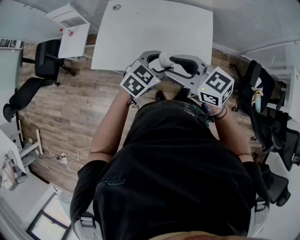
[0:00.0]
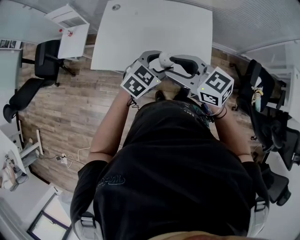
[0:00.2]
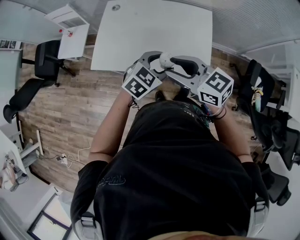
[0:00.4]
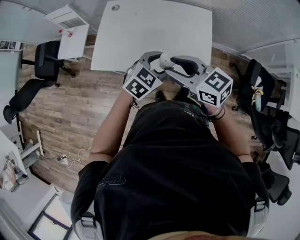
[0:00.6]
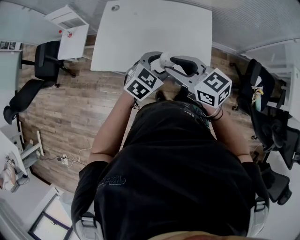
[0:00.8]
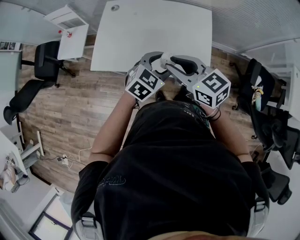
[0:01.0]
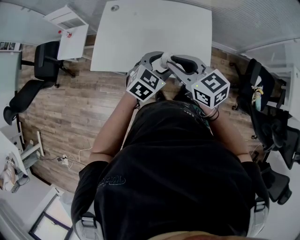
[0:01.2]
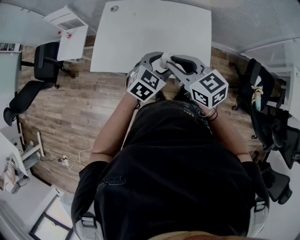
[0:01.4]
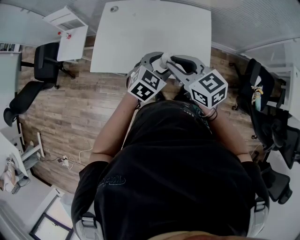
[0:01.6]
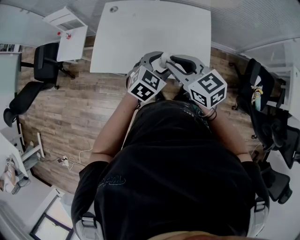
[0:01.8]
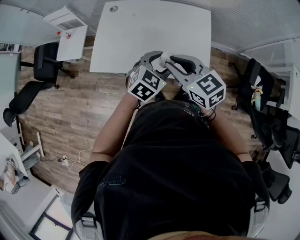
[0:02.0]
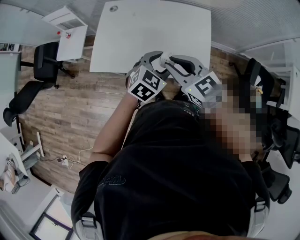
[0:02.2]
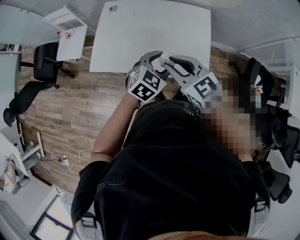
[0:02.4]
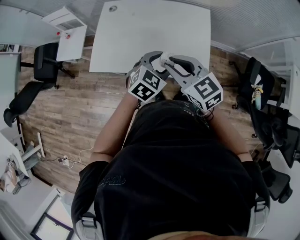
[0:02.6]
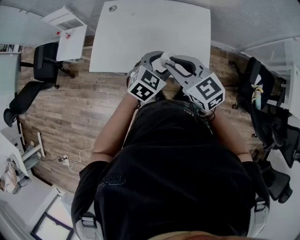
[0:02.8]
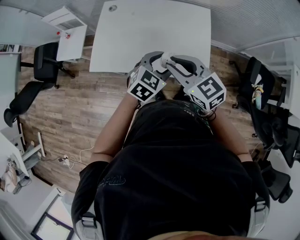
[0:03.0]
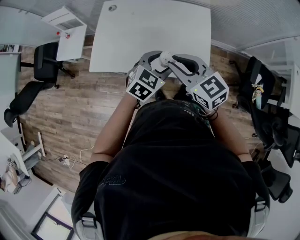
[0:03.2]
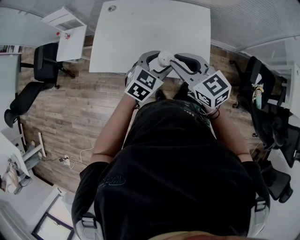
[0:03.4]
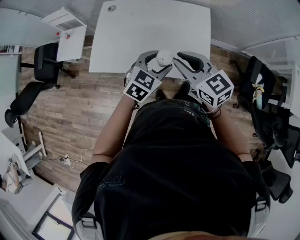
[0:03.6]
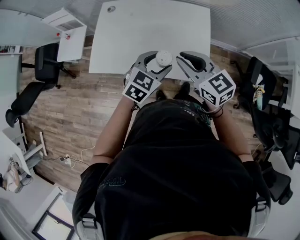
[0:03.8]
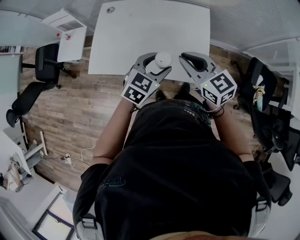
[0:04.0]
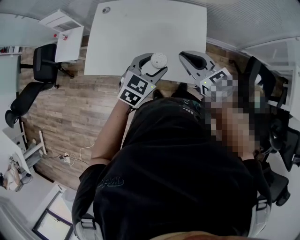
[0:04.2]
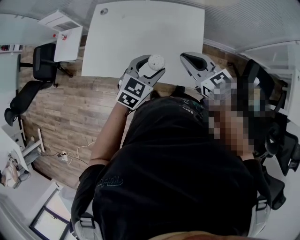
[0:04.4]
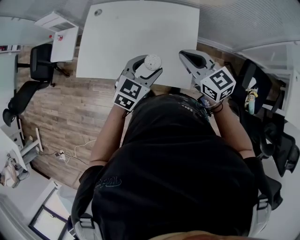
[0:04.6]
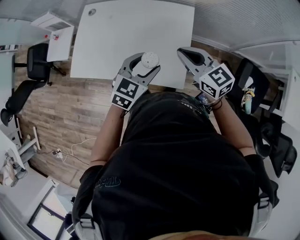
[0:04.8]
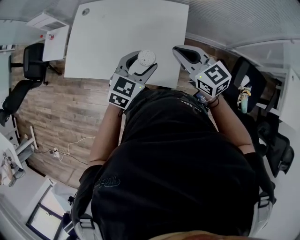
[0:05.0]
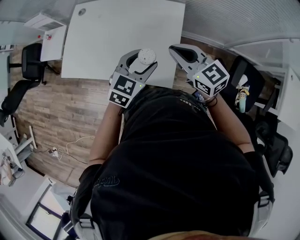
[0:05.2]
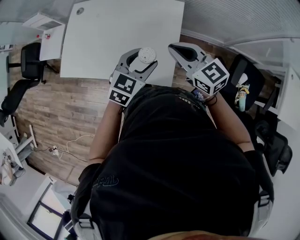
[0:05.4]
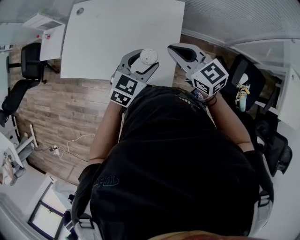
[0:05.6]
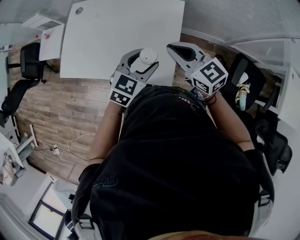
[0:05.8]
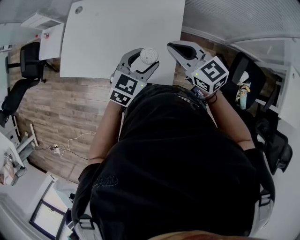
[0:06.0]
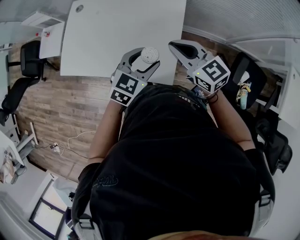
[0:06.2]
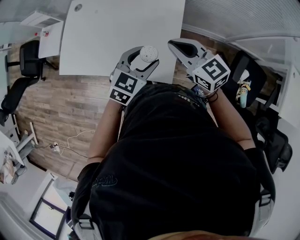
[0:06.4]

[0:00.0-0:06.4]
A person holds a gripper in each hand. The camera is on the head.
0:00.0 to 0:01.6: The right gripper closes its fingers.
0:01.6 to 0:03.2: The grippers move only a little.
0:03.2 to 0:04.8: The right gripper heads to the right and forward, covering approximately 20 cm. The left gripper goes roughly 10 cm to the right.
0:04.8 to 0:06.4: The left gripper shifts about 5 cm to the right.

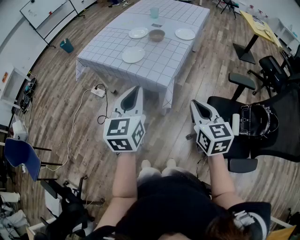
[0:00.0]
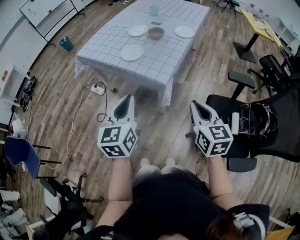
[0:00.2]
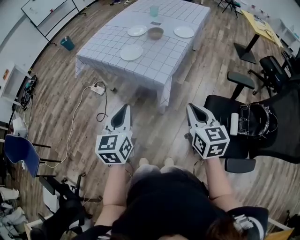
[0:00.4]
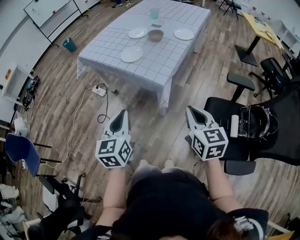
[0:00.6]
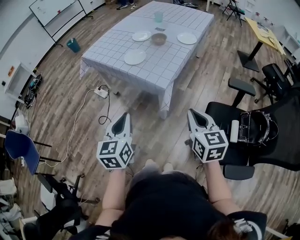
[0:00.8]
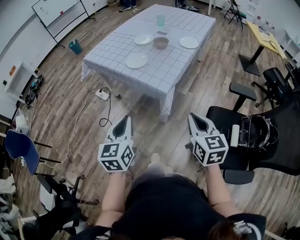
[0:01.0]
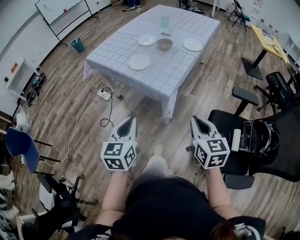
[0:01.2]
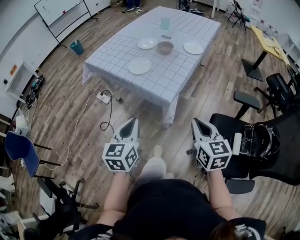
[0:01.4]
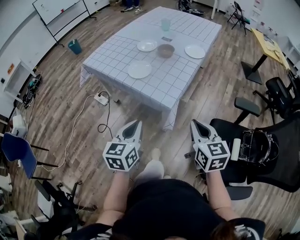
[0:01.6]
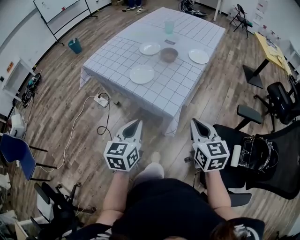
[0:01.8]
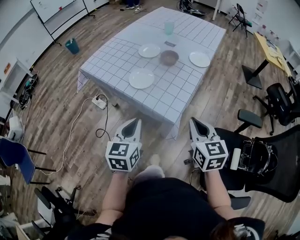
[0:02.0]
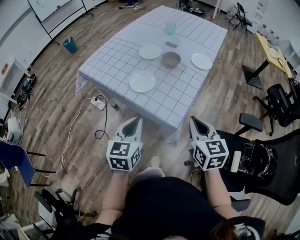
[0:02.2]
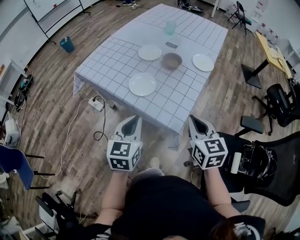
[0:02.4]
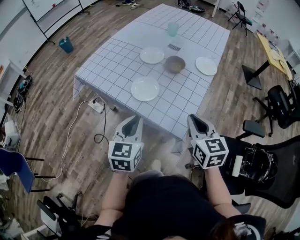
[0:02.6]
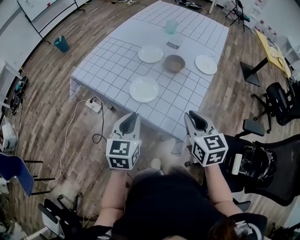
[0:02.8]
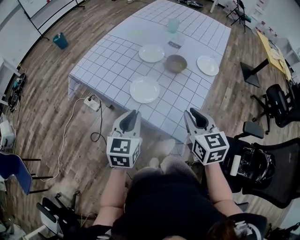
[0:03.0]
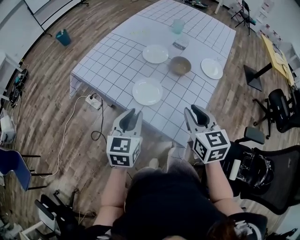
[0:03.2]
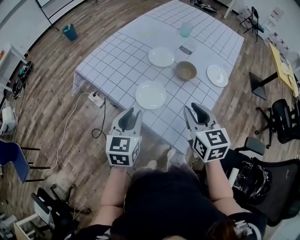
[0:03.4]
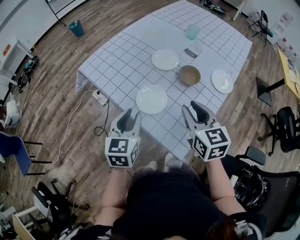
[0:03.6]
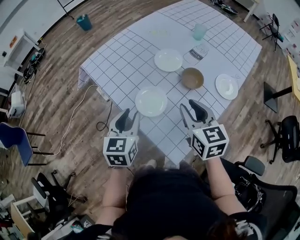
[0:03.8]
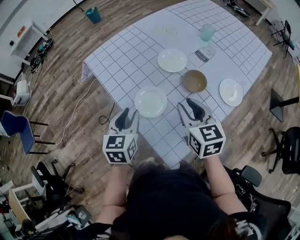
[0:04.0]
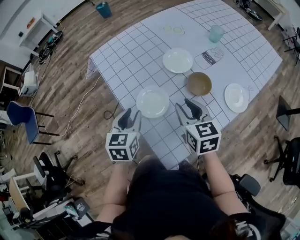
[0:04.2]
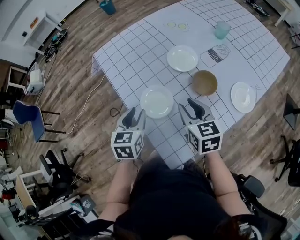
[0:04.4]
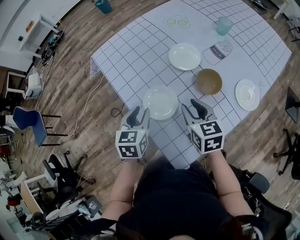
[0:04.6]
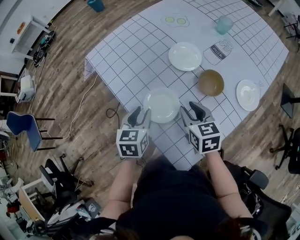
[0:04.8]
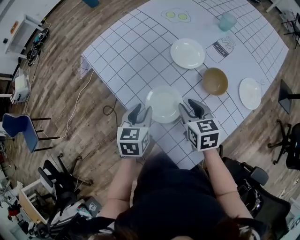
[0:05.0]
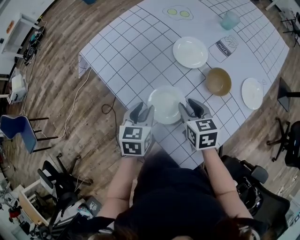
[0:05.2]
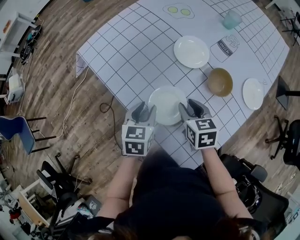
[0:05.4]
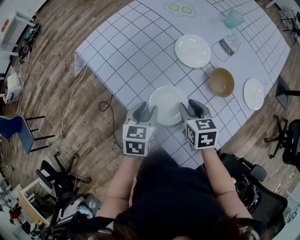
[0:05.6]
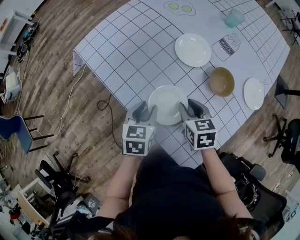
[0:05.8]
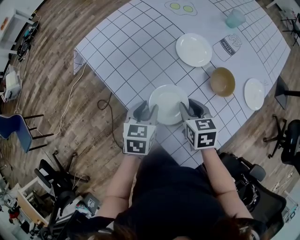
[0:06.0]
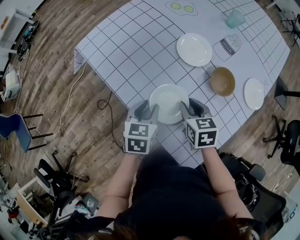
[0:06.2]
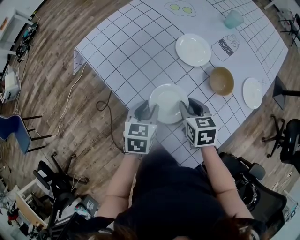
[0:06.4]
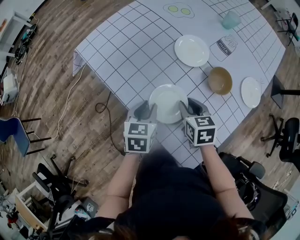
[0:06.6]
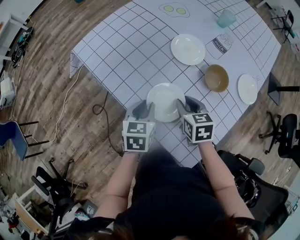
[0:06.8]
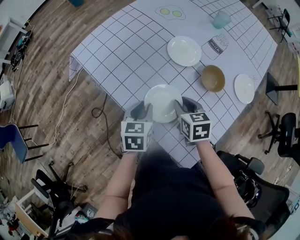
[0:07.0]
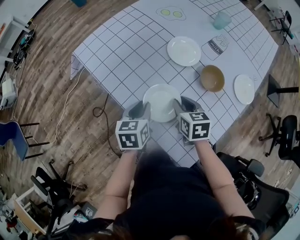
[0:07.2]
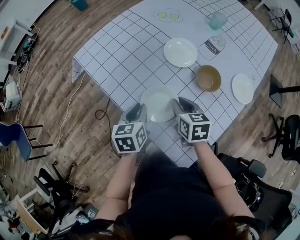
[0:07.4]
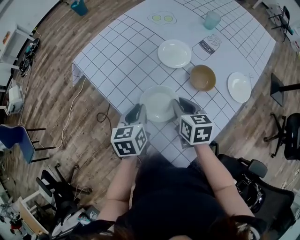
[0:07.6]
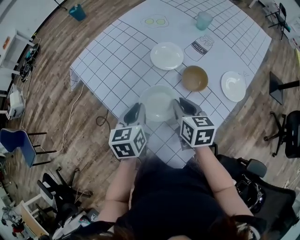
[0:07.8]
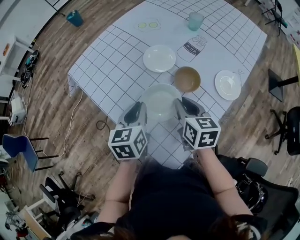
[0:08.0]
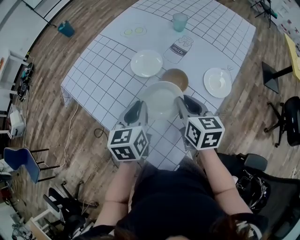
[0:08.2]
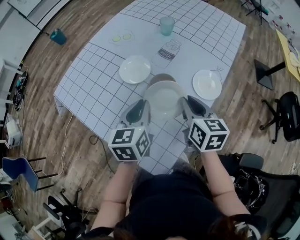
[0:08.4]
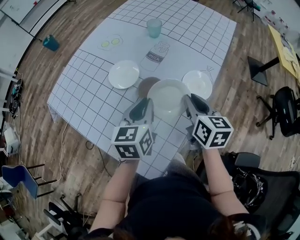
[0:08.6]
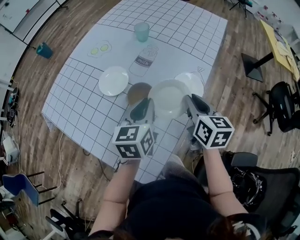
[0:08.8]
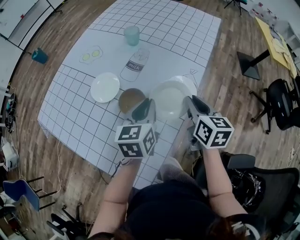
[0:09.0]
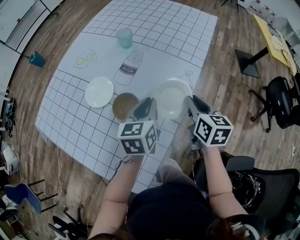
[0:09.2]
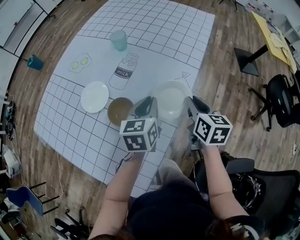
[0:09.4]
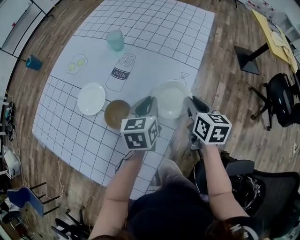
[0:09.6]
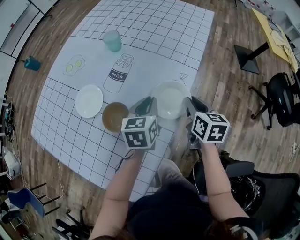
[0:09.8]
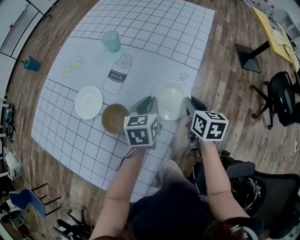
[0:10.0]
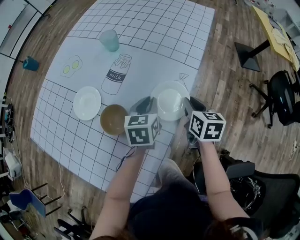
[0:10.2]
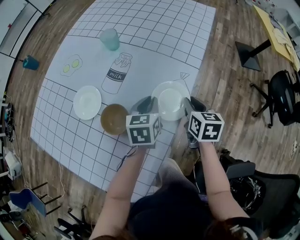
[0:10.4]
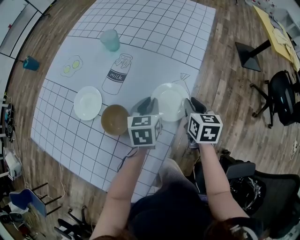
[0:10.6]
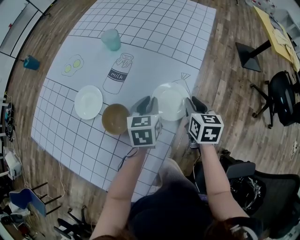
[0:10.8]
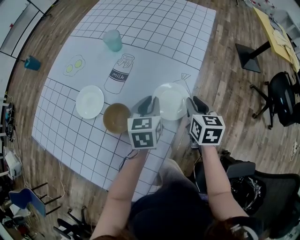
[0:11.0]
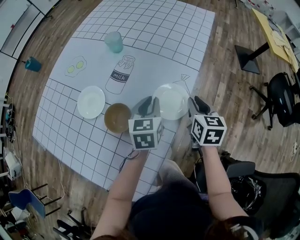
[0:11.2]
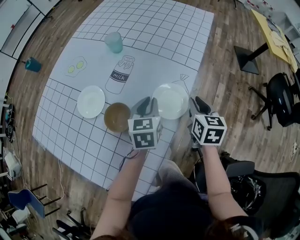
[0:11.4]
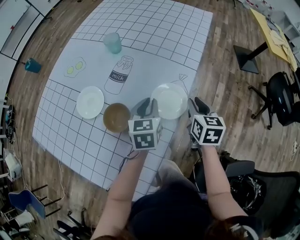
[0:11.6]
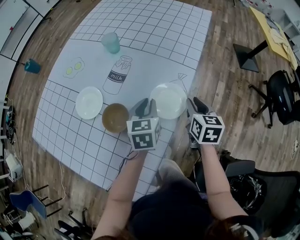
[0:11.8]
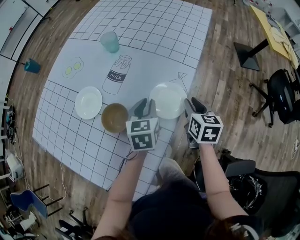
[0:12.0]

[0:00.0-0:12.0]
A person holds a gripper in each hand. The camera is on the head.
0:00.0 to 0:01.6: The left gripper is displaced downward by roughly 10 cm. Meanwhile the right gripper is displaced forward by some 5 cm.
0:01.6 to 0:03.0: The left gripper shifts some 25 cm forward; the right gripper shifts some 25 cm forward and to the left.
0:03.0 to 0:04.4: The left gripper changes place by roughly 15 cm, rotates about 30 degrees, and opens its fingers, while the right gripper changes place by some 20 cm, and changes its angle by approximately 30 degrees.
0:04.4 to 0:06.0: The right gripper goes approximately 10 cm downward and to the left, and rotates about 20 degrees. The left gripper moves downward and forward, some 10 cm.
0:06.0 to 0:07.6: The right gripper shifts by some 5 cm. Meanwhile the left gripper shifts roughly 5 cm upward.
0:07.6 to 0:09.0: The grippers both shift to the right by approximately 30 cm. The left gripper changes its angle by approximately 30 degrees, while the right gripper turns by approximately 30 degrees.
0:09.0 to 0:10.4: Both grippers travel together downward, forward and to the right, some 15 cm.
0:10.4 to 0:12.0: The grippers move only a little.

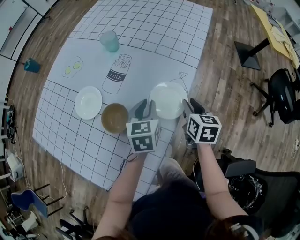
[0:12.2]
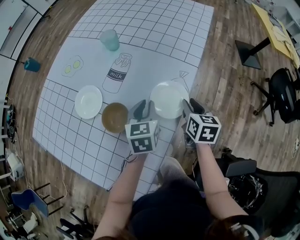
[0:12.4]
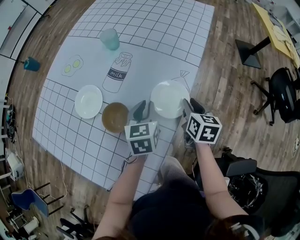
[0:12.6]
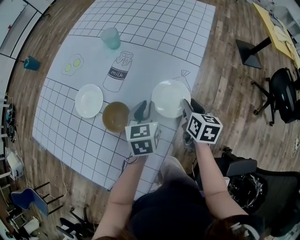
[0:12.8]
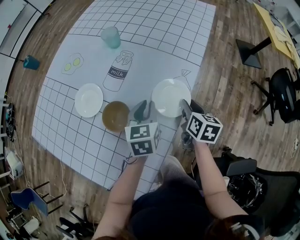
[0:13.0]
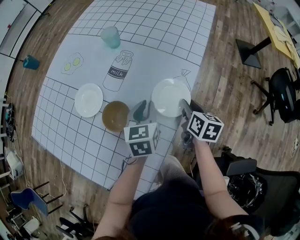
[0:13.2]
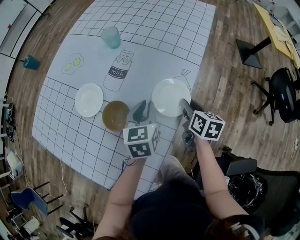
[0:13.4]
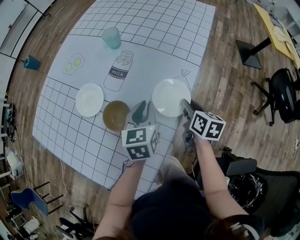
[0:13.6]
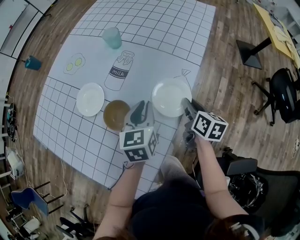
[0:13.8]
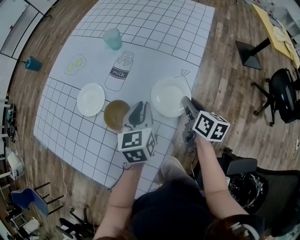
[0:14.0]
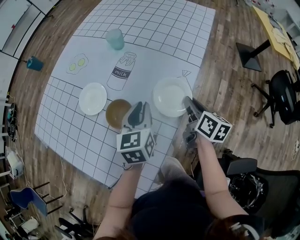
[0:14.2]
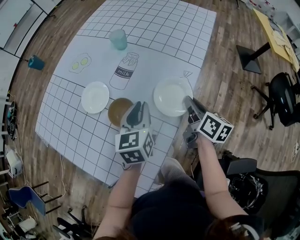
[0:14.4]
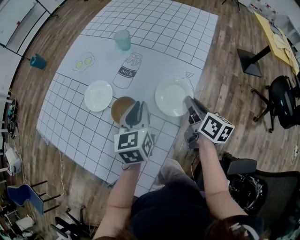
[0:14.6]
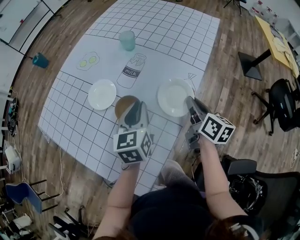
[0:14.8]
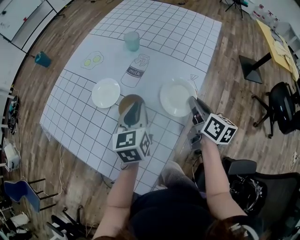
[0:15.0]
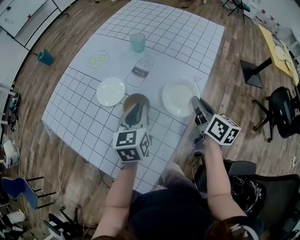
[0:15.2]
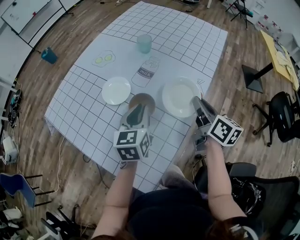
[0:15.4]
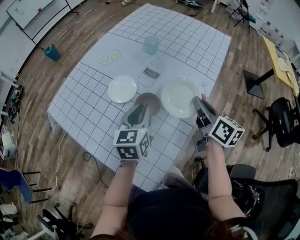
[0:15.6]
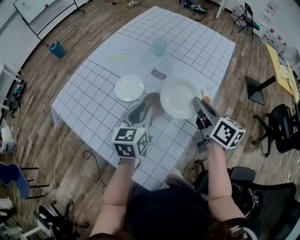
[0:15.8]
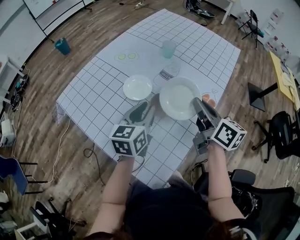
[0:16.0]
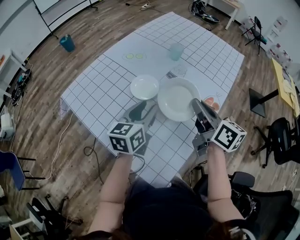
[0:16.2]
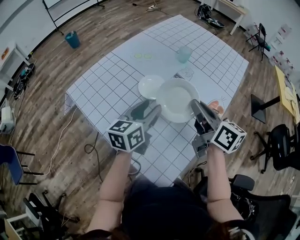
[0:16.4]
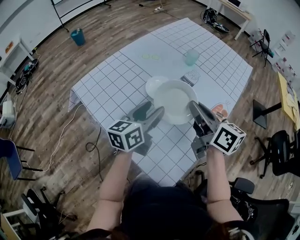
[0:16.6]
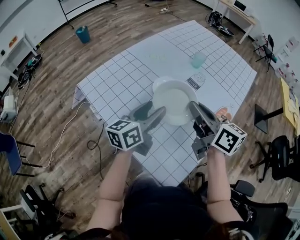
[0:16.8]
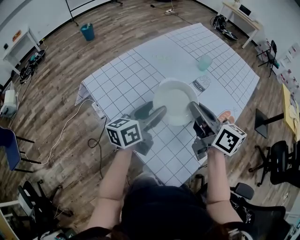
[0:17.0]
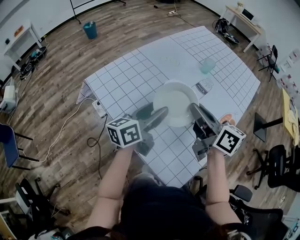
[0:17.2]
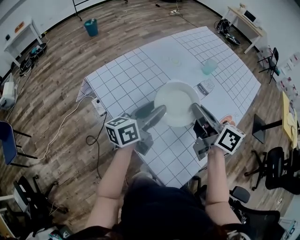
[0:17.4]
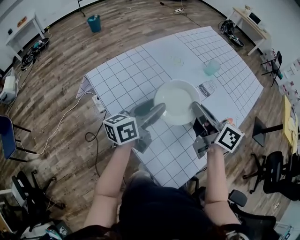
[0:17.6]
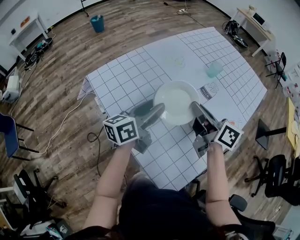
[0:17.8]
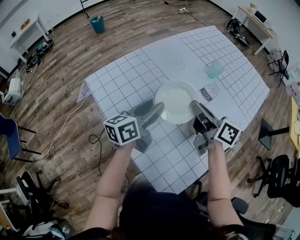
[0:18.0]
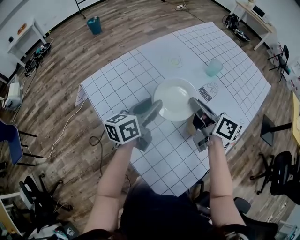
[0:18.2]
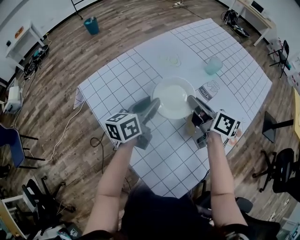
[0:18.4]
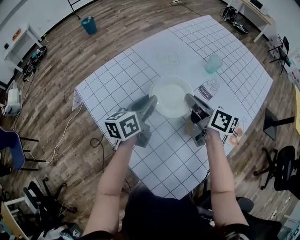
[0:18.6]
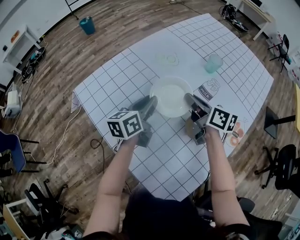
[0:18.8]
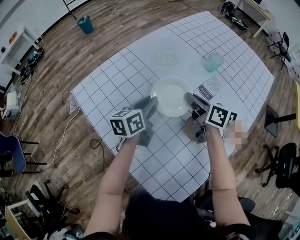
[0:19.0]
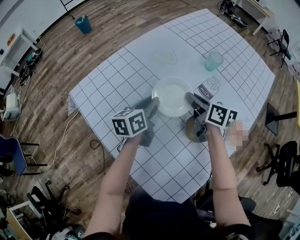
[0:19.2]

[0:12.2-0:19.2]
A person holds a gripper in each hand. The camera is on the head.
0:12.2 to 0:13.6: The grippers make only small movements.
0:13.6 to 0:15.0: The left gripper heads to the left and upward, covering some 10 cm. The right gripper goes about 10 cm upward, and closes.
0:15.0 to 0:16.4: The right gripper shifts some 25 cm to the left and upward, and rotates approximately 30 degrees; the left gripper travels to the left by approximately 15 cm, rotates some 20 degrees, and opens its fingers.
0:16.4 to 0:17.8: The left gripper travels to the left by some 10 cm, and turns by about 20 degrees. The right gripper heads to the left and forward, covering approximately 15 cm.
0:17.8 to 0:19.2: The left gripper moves forward and downward, roughly 15 cm, turns by about 20 degrees, and closes. The right gripper heads downward, forward and to the right, covering roughly 20 cm.
